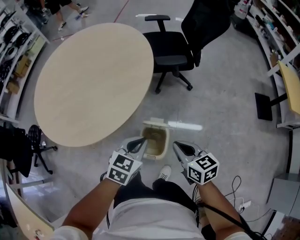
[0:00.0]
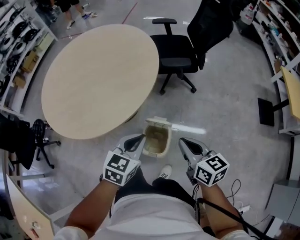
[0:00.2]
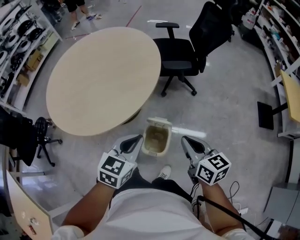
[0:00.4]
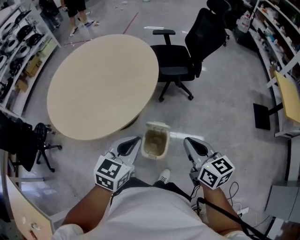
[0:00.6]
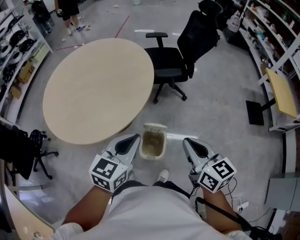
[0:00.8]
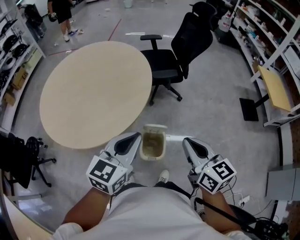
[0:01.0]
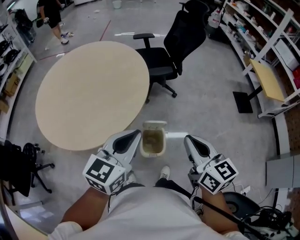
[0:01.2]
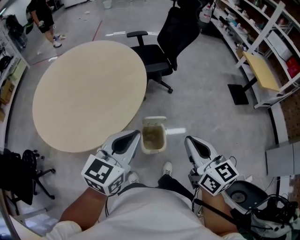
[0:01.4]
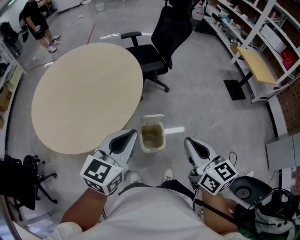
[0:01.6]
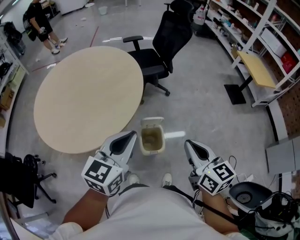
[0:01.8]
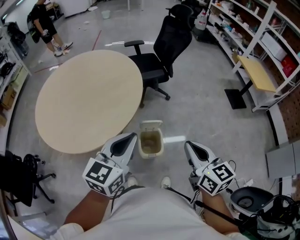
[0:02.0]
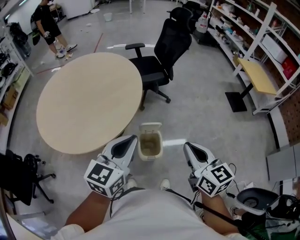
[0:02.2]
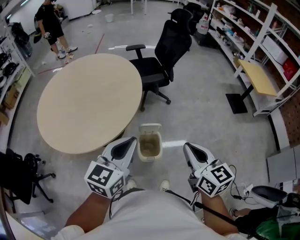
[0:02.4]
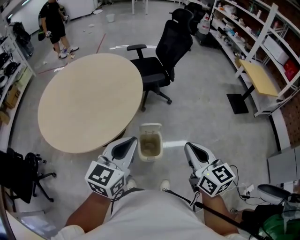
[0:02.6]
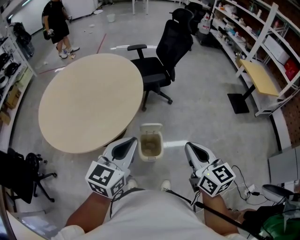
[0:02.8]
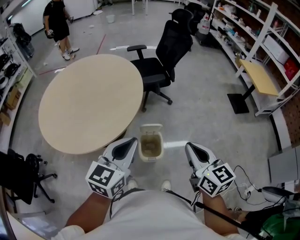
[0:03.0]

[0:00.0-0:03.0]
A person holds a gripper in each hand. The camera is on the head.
0:00.0 to 0:01.6: The left gripper is displaced upward and to the left by approximately 25 cm, and turns by roughly 30 degrees. Meanwhile the right gripper moves upward and backward, some 25 cm, and rotates roughly 30 degrees.
0:01.6 to 0:03.0: The grippers move only a little.

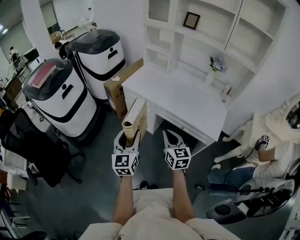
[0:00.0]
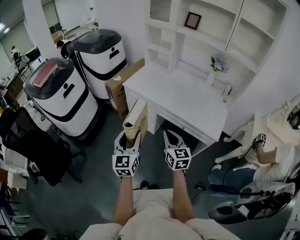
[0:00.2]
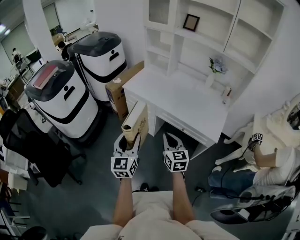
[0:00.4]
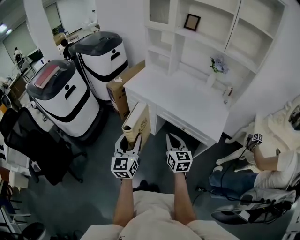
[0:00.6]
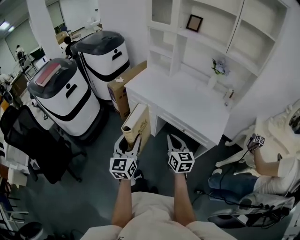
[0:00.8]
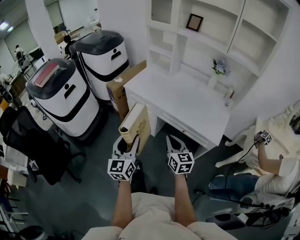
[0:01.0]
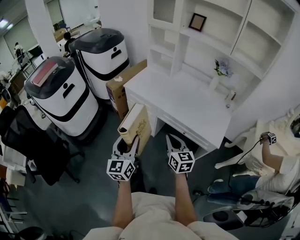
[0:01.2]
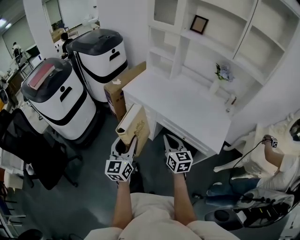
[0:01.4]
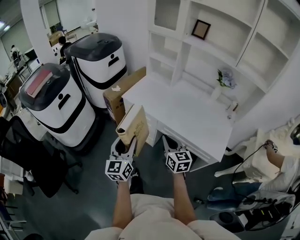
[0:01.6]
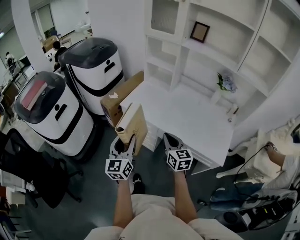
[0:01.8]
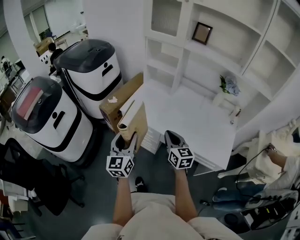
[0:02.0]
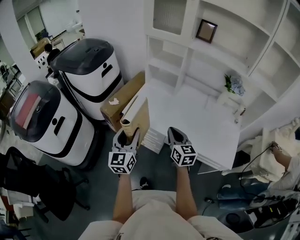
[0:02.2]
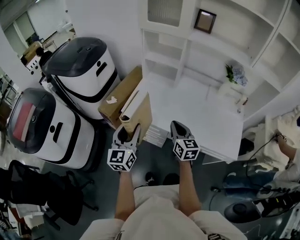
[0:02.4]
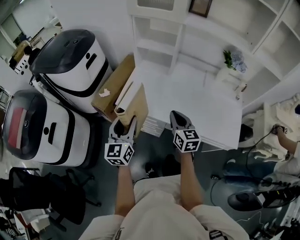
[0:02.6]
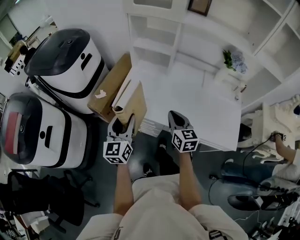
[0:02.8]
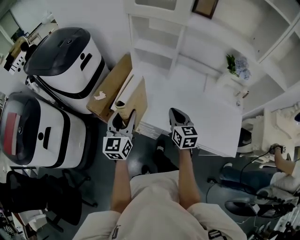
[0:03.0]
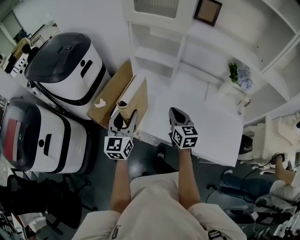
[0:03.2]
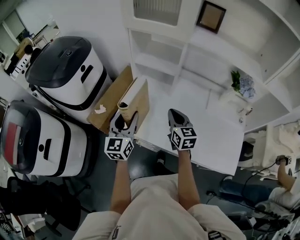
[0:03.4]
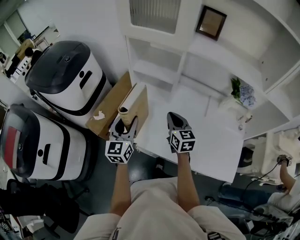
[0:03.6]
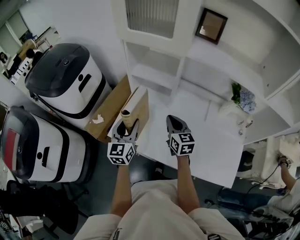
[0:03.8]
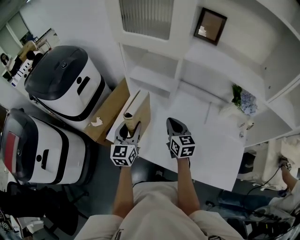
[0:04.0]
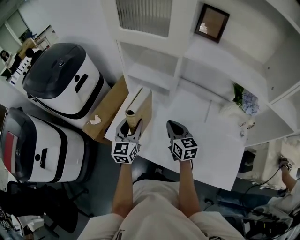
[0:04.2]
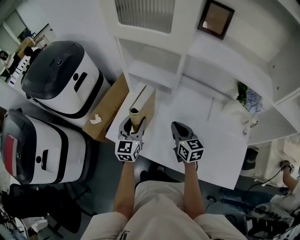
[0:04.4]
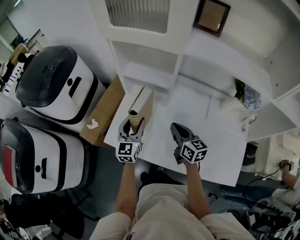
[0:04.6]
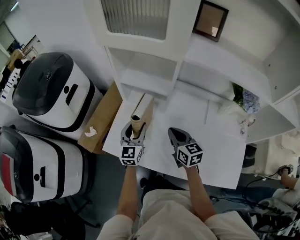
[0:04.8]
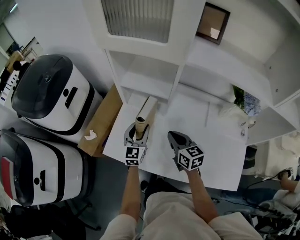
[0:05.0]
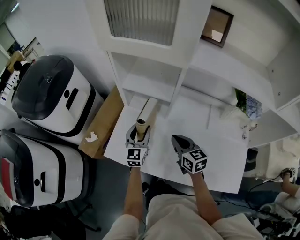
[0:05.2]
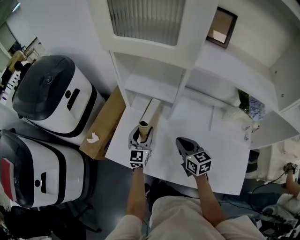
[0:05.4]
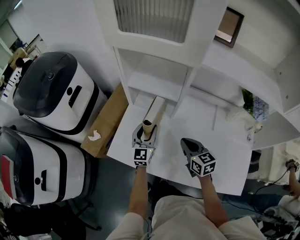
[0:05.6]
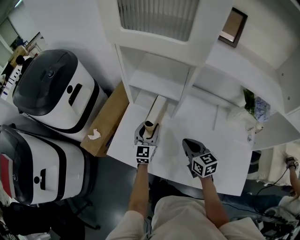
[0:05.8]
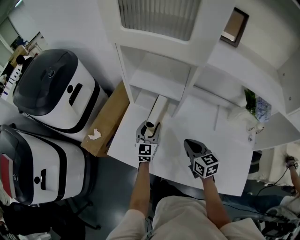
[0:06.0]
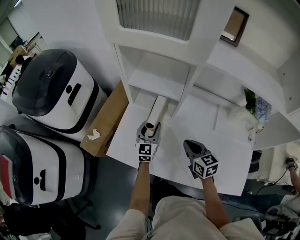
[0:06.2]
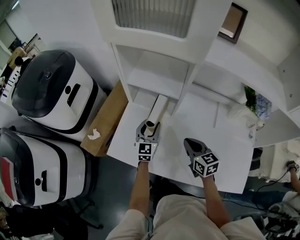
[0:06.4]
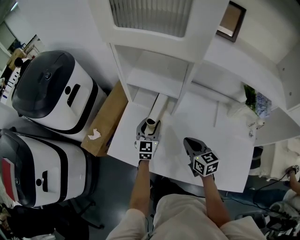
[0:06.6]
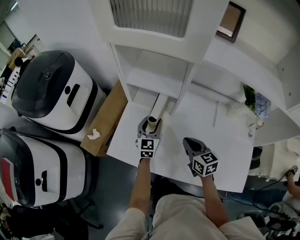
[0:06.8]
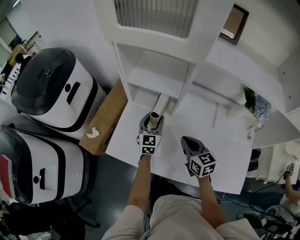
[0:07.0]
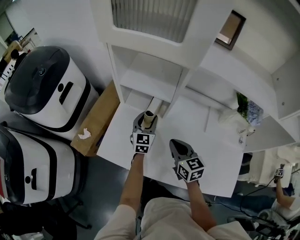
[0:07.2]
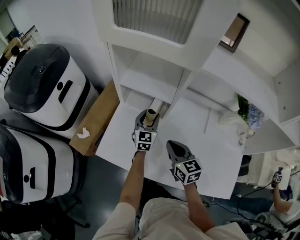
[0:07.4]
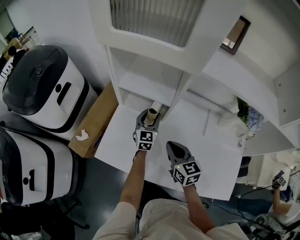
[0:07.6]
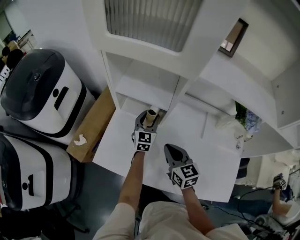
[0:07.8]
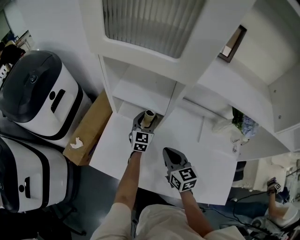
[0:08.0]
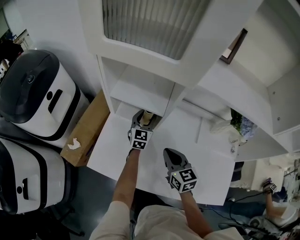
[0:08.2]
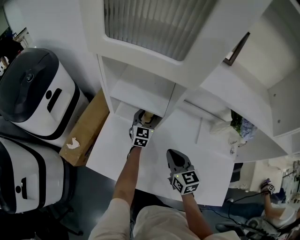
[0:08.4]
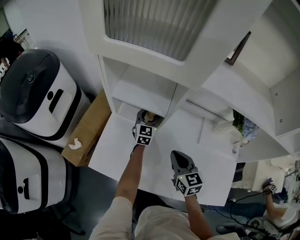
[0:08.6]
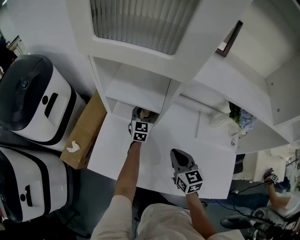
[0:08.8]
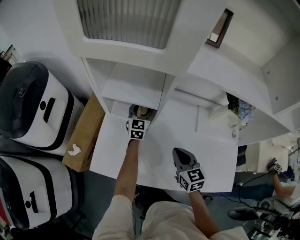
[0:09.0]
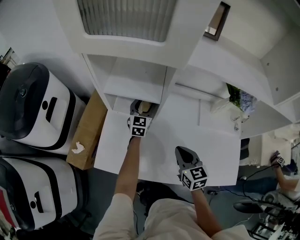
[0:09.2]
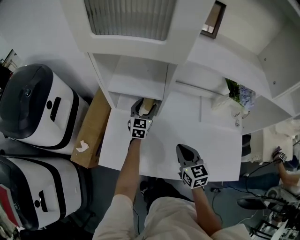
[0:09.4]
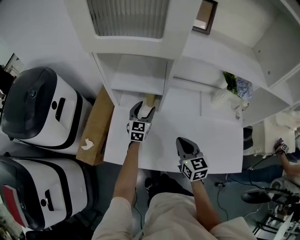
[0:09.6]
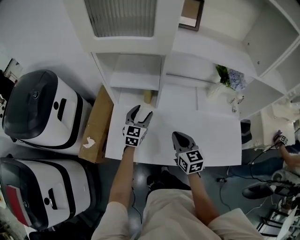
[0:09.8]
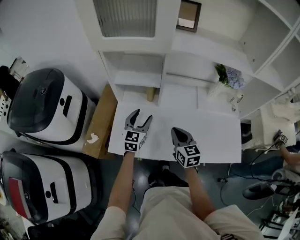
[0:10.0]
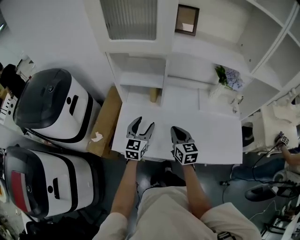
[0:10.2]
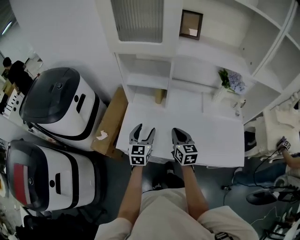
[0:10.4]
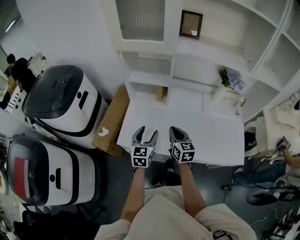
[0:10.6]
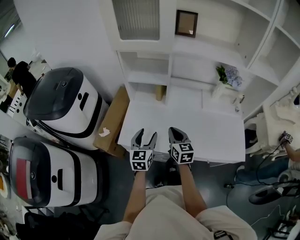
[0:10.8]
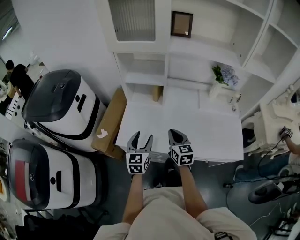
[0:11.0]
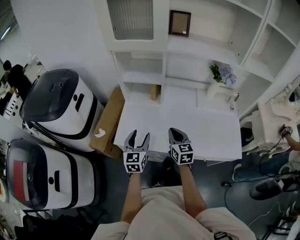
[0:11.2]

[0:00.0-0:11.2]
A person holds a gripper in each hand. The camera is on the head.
0:00.0 to 0:01.6: Both grippers move forward, about 10 cm.
0:01.6 to 0:03.2: The grippers both shift forward by roughly 40 cm.
0:03.2 to 0:04.8: The right gripper shifts about 15 cm forward and downward. The left gripper travels forward, downward and to the right by about 25 cm.
0:04.8 to 0:06.4: The left gripper goes approximately 5 cm downward; the right gripper moves some 5 cm.
0:06.4 to 0:08.0: The right gripper moves about 5 cm. The left gripper goes roughly 15 cm forward and to the right.
0:08.0 to 0:09.6: The left gripper moves roughly 5 cm. The right gripper is displaced backward by some 5 cm.
0:09.6 to 0:11.2: The right gripper travels backward by about 10 cm. Meanwhile the left gripper moves backward, approximately 30 cm.

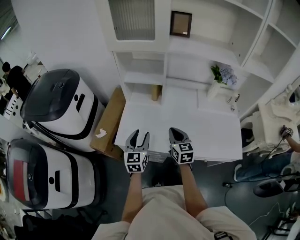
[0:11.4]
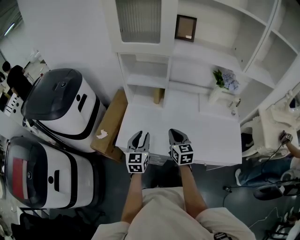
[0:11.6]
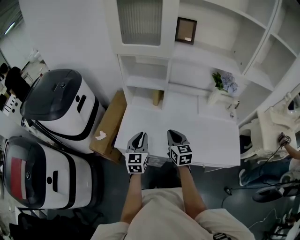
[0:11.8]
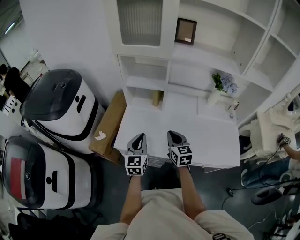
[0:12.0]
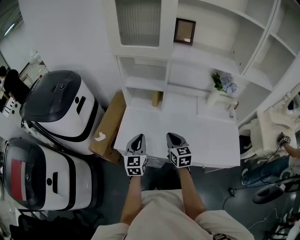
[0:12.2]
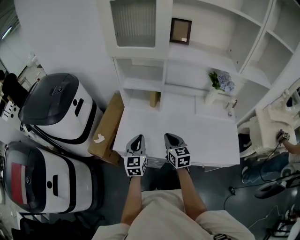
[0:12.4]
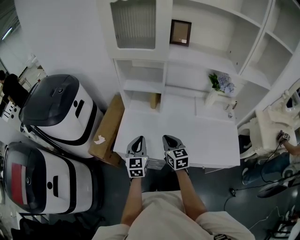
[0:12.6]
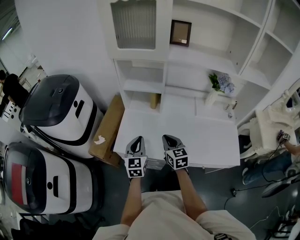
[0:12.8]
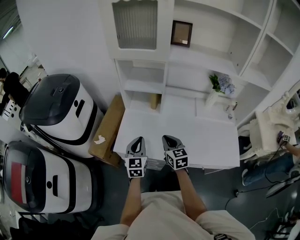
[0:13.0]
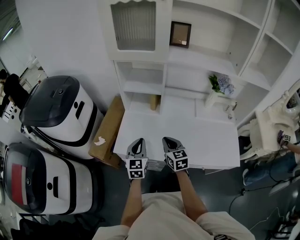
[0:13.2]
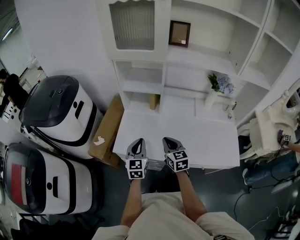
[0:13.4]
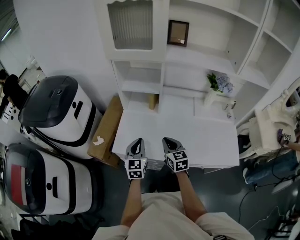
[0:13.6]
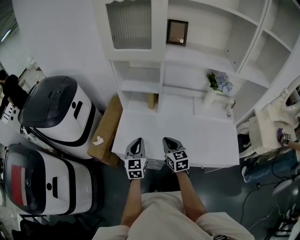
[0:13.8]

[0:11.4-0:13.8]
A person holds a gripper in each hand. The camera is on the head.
0:11.4 to 0:12.6: The left gripper closes up.
0:12.6 to 0:13.8: The grippers move only a little.

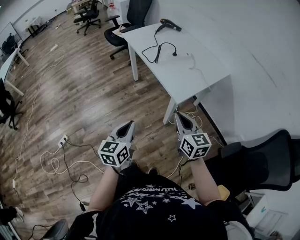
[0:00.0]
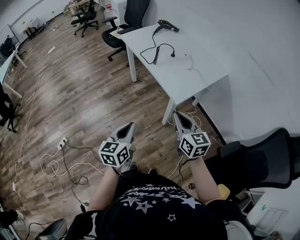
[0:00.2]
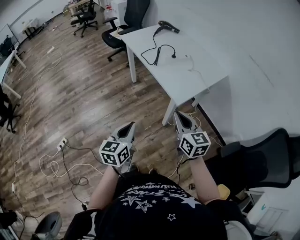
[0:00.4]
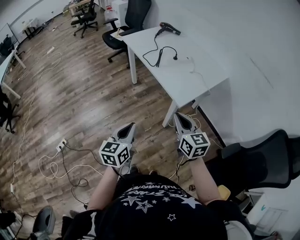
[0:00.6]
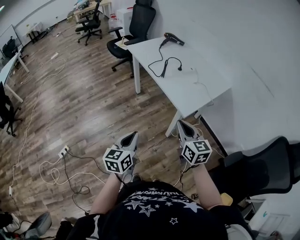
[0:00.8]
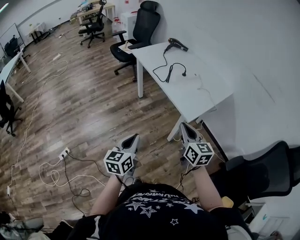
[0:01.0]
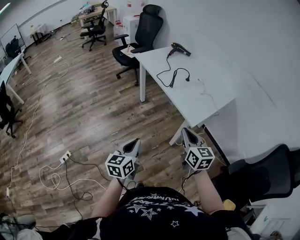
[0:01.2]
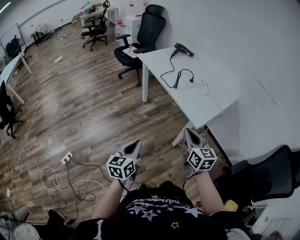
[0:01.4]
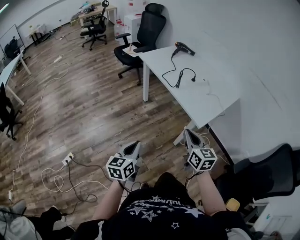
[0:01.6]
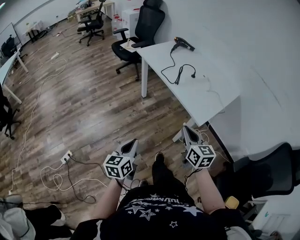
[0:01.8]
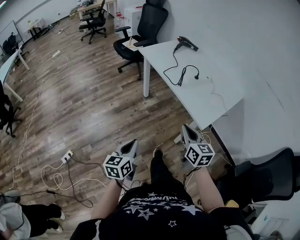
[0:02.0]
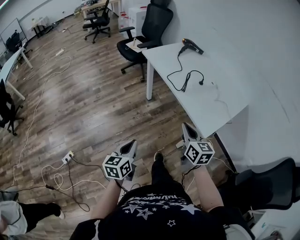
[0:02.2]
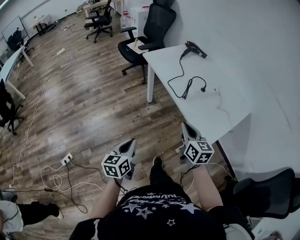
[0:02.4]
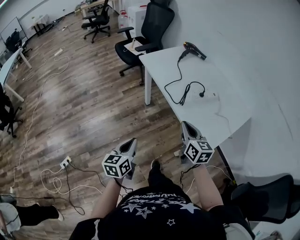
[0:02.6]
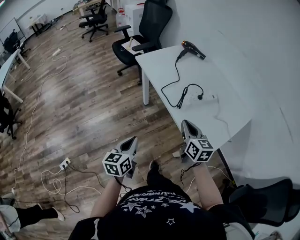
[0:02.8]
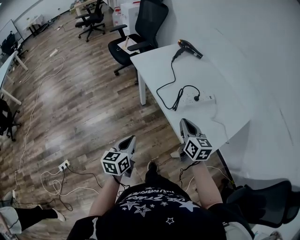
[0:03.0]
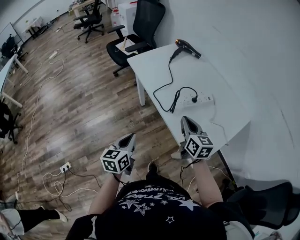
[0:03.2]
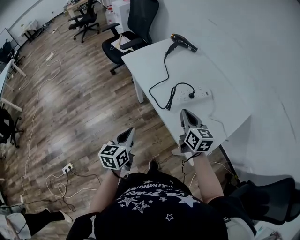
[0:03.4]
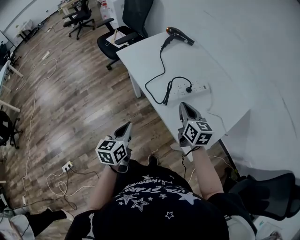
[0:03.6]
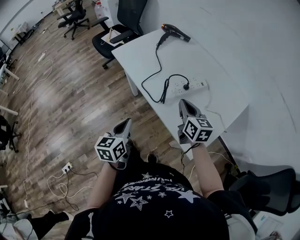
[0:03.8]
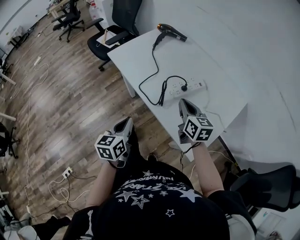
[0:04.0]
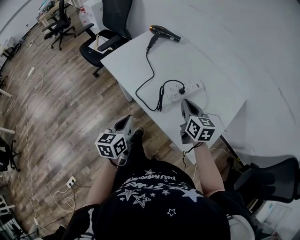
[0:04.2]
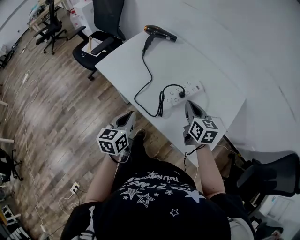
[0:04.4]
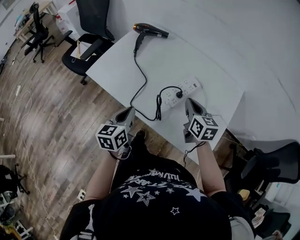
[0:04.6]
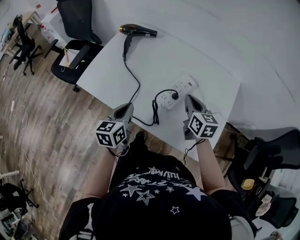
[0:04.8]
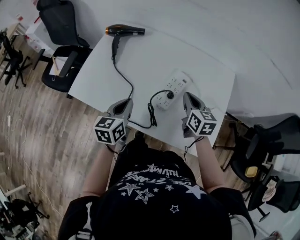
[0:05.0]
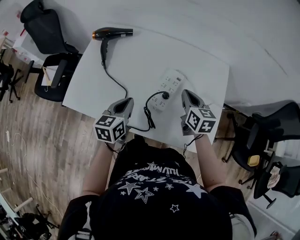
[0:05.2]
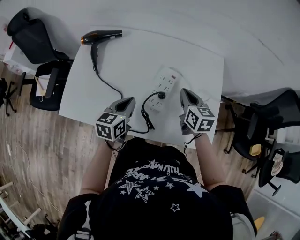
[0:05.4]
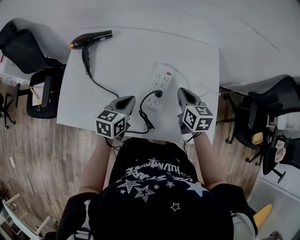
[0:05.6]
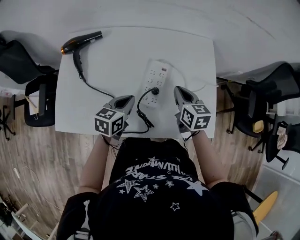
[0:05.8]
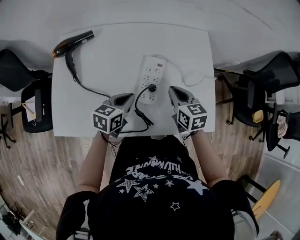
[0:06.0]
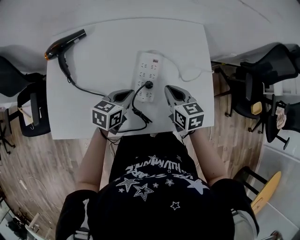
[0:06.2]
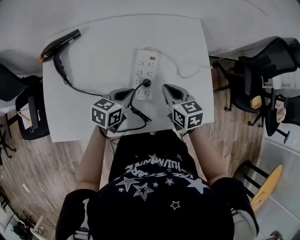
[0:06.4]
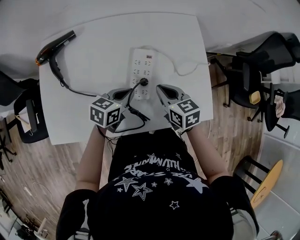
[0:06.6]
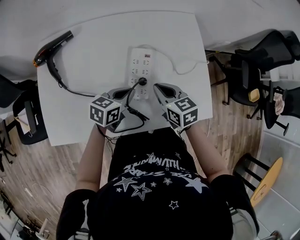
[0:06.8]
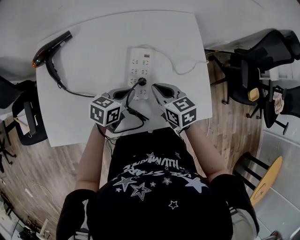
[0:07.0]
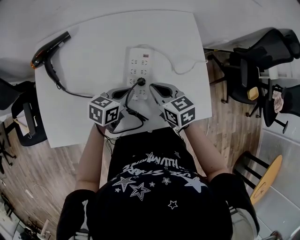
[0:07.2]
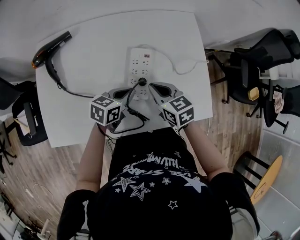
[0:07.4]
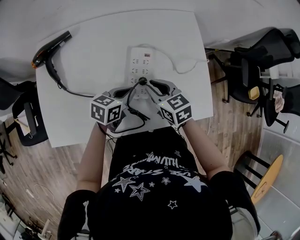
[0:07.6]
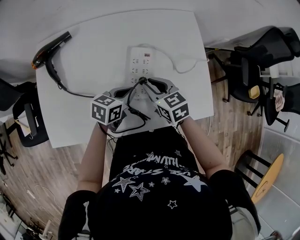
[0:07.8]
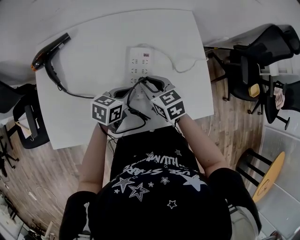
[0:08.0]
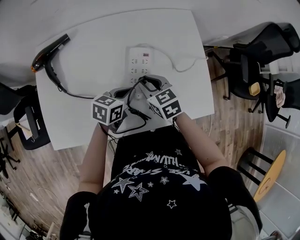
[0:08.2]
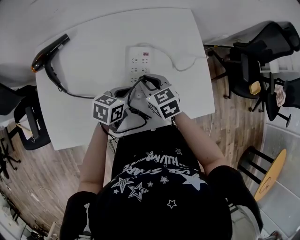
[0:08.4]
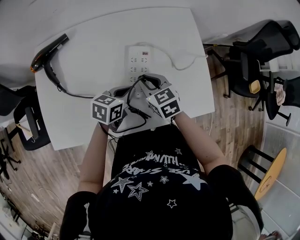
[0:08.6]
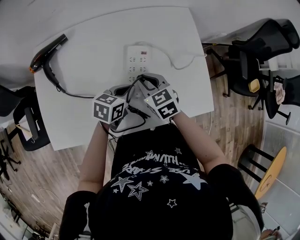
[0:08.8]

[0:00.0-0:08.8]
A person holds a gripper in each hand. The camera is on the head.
0:00.0 to 0:01.4: Both grippers move to the left, roughly 15 cm.
0:01.4 to 0:03.0: Both grippers move forward, approximately 30 cm.
0:03.0 to 0:04.4: The right gripper heads forward and to the right, covering roughly 20 cm. The left gripper travels forward by some 25 cm.
0:04.4 to 0:05.8: The left gripper ends up about 25 cm from where it was, and turns by approximately 60 degrees. Meanwhile the right gripper moves some 10 cm, and rotates approximately 30 degrees.
0:05.8 to 0:07.4: The left gripper travels to the right by about 5 cm, and turns by some 20 degrees; the right gripper shifts by about 5 cm.
0:07.4 to 0:08.8: The grippers stay close to where they were, moving slightly.
